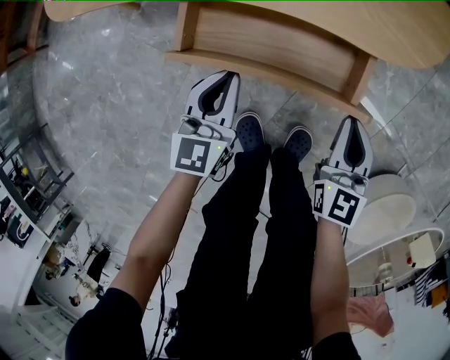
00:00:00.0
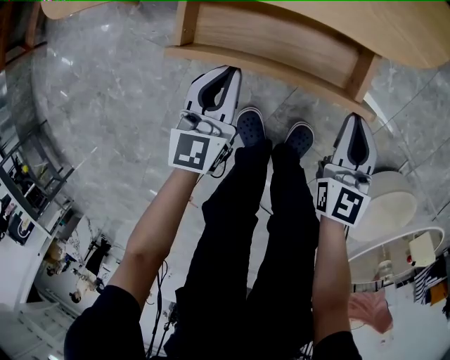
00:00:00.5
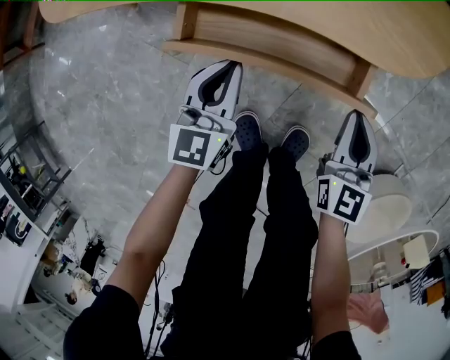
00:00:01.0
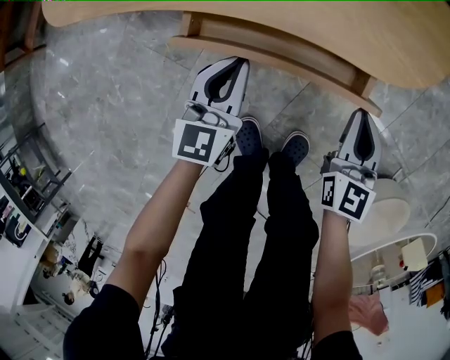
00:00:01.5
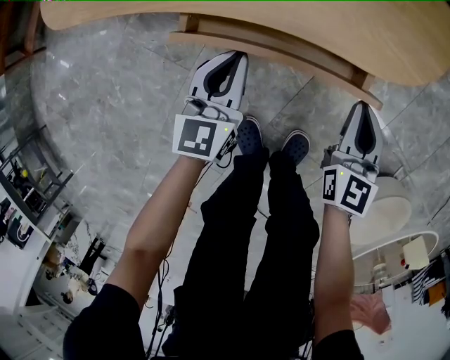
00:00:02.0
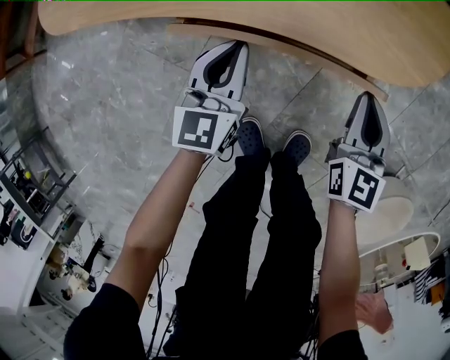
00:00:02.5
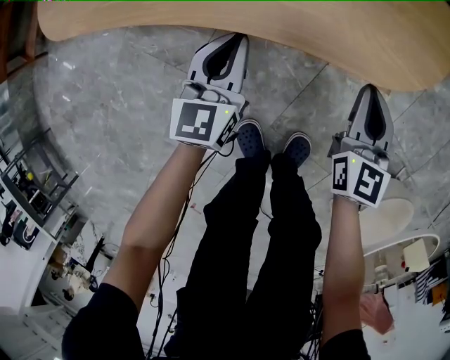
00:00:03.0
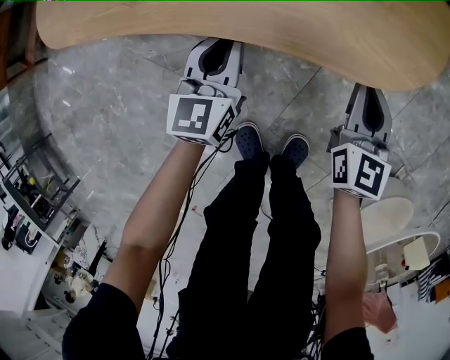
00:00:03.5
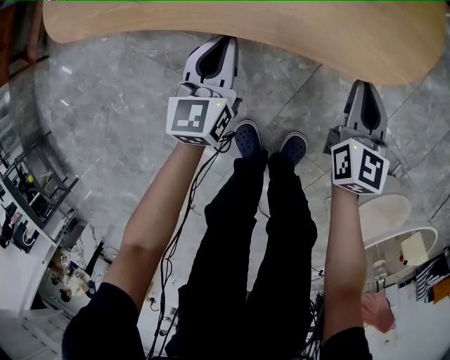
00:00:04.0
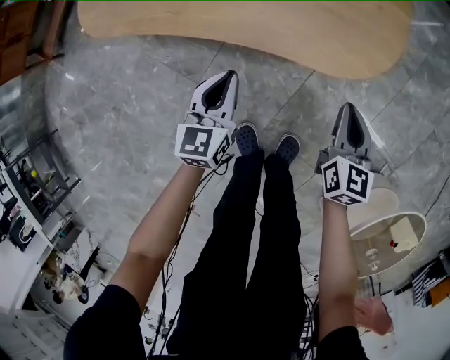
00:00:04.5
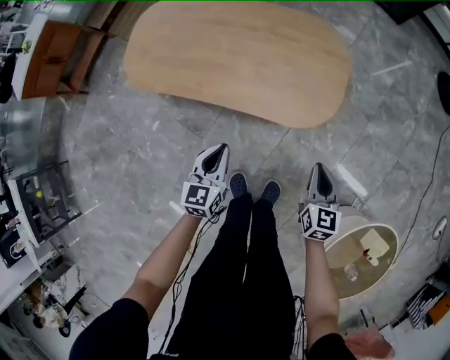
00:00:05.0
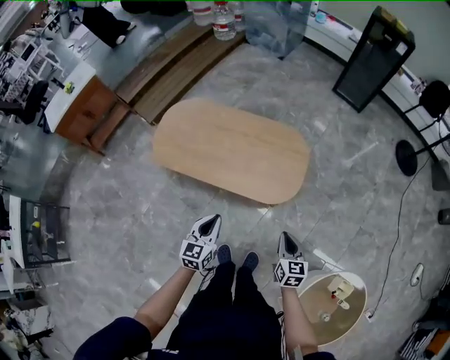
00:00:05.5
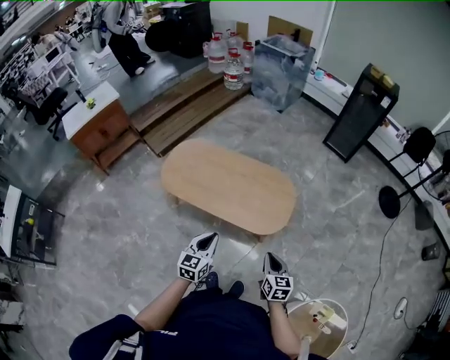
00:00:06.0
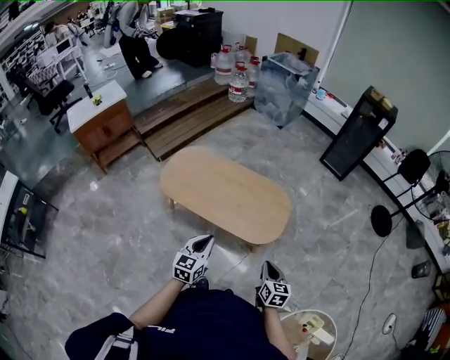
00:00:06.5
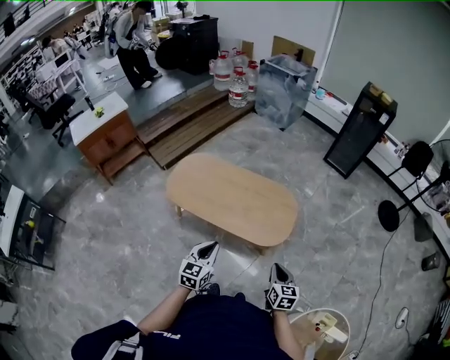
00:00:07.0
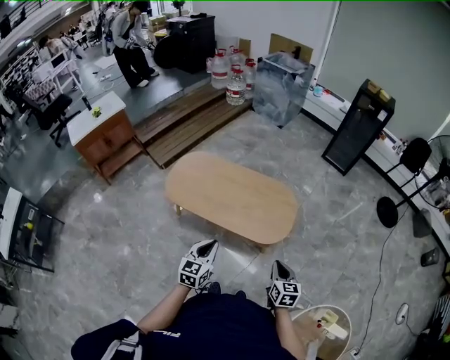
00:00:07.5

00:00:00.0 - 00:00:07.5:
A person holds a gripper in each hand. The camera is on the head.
00:00:00.0 - 00:00:02.0: The grippers both shift forward by approximately 5 cm.
00:00:02.0 - 00:00:04.0: The grippers both shift forward by about 5 cm.
00:00:04.0 - 00:00:05.5: The grippers both shift upward by some 50 cm.
00:00:05.5 - 00:00:07.5: The right gripper goes some 10 cm upward, while the left gripper moves upward and backward, about 15 cm.

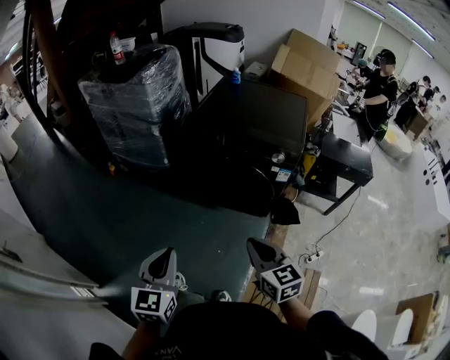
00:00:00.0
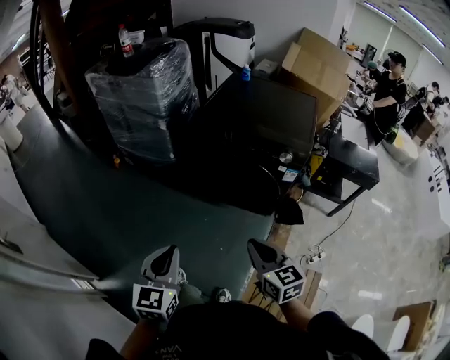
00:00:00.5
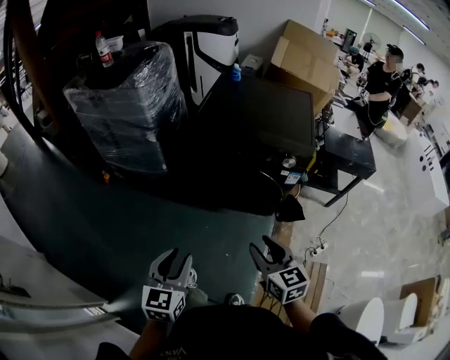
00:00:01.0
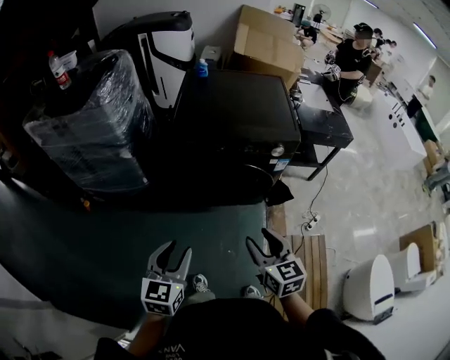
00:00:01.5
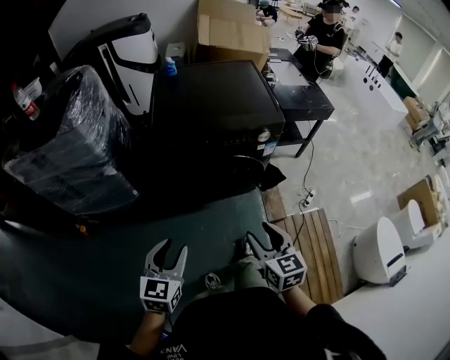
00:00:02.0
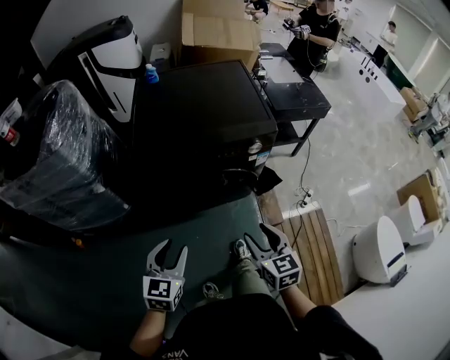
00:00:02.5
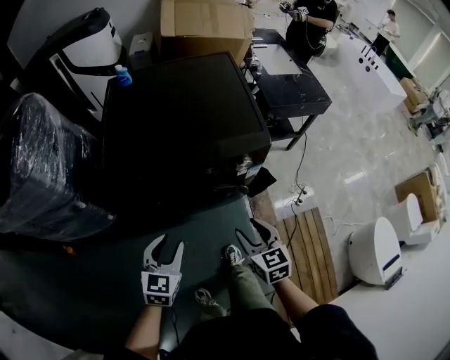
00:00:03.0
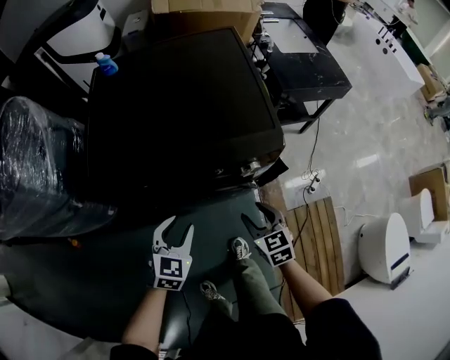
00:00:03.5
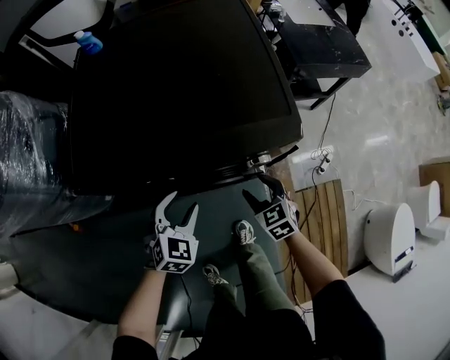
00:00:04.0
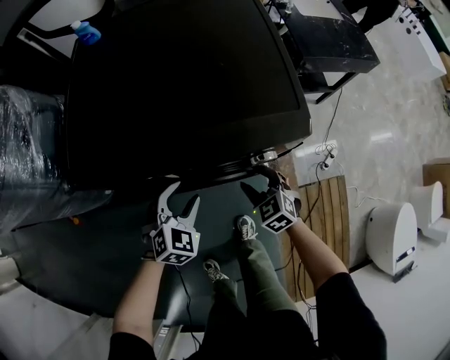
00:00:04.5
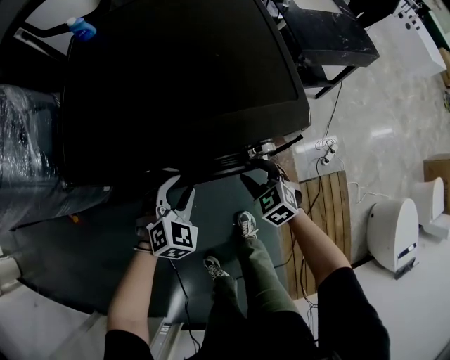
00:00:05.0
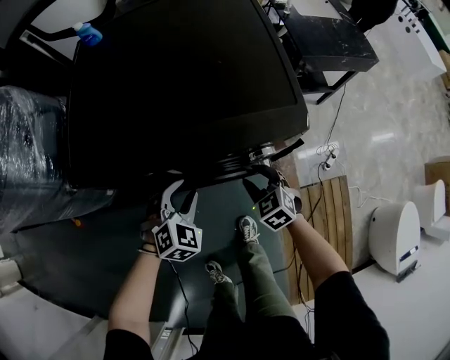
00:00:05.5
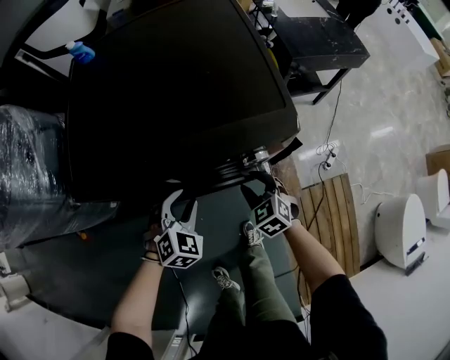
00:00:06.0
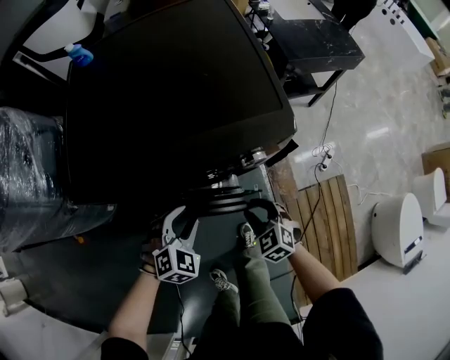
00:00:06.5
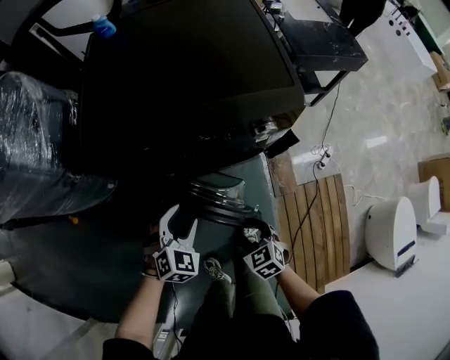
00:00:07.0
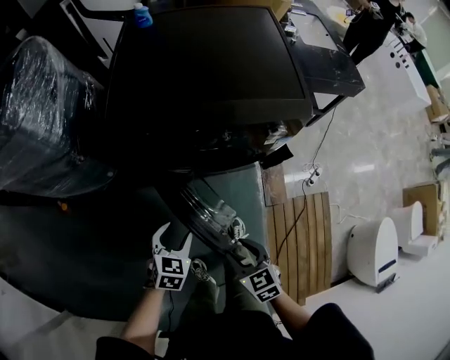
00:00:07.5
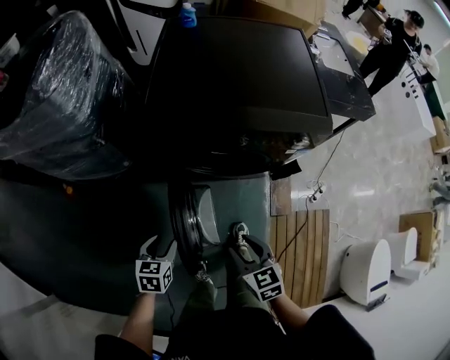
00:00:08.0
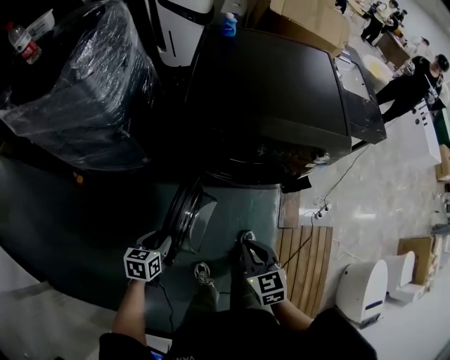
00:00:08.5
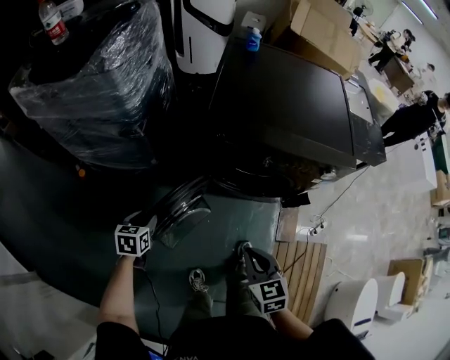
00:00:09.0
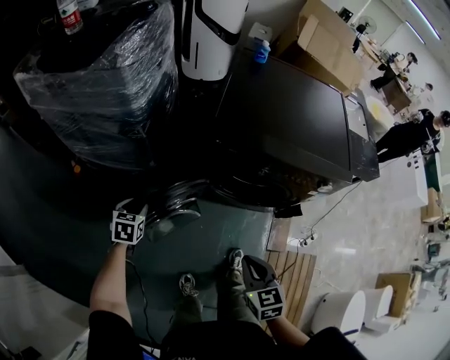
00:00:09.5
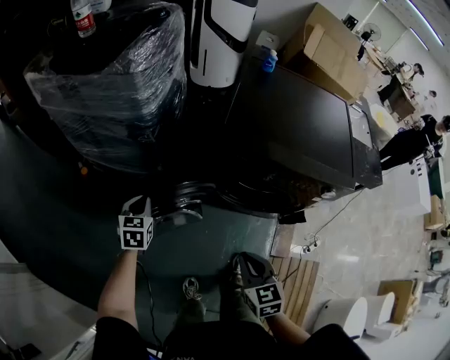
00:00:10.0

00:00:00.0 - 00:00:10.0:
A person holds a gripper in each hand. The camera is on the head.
00:00:00.0 - 00:00:02.0: The right gripper ends up approximately 15 cm from where it was, rotates approximately 40 degrees, and opens; the left gripper shifts by some 25 cm, rotates roughly 40 degrees, and opens up.
00:00:02.0 - 00:00:04.0: The left gripper shifts some 50 cm forward, downward and to the right, and rotates roughly 40 degrees. The right gripper heads forward and downward, covering roughly 40 cm, and changes its angle by some 30 degrees.
00:00:04.0 - 00:00:06.0: The grippers move only a little.
00:00:06.0 - 00:00:08.0: The left gripper heads to the left and backward, covering roughly 35 cm, and rolls counterclockwise, seen from behind, by approximately 60 degrees. Meanwhile the right gripper moves backward, to the left and upward, about 35 cm.
00:00:08.0 - 00:00:10.0: The right gripper moves to the left and upward, some 15 cm, and closes its fingers; the left gripper goes about 25 cm to the left and forward, turns by approximately 20 degrees, and closes its fingers.

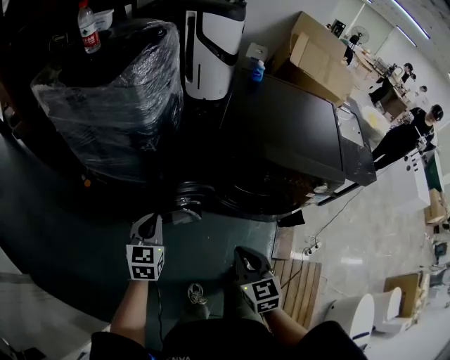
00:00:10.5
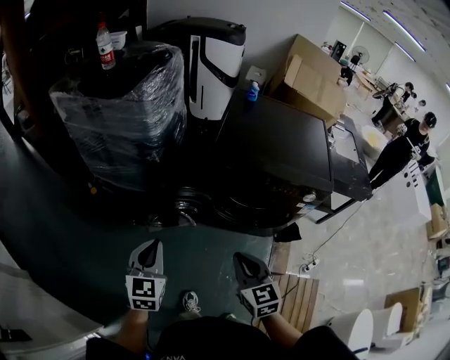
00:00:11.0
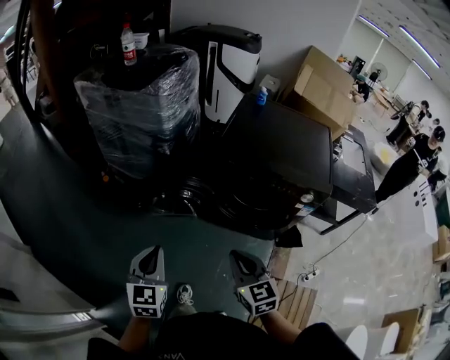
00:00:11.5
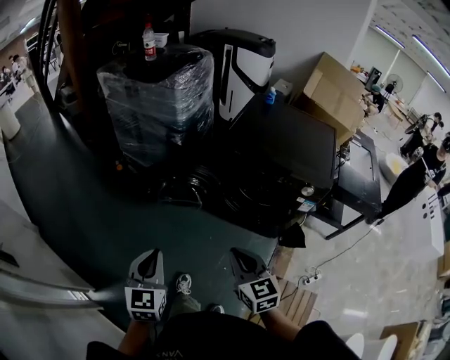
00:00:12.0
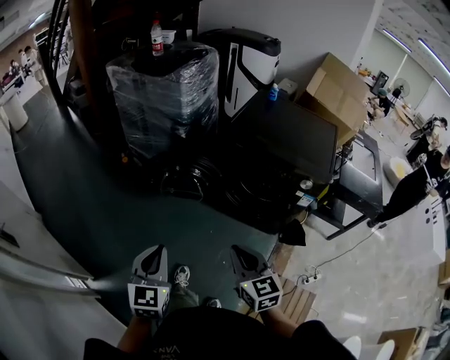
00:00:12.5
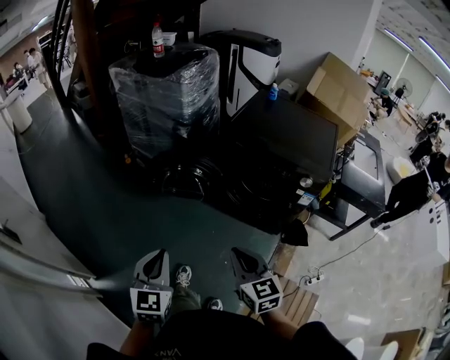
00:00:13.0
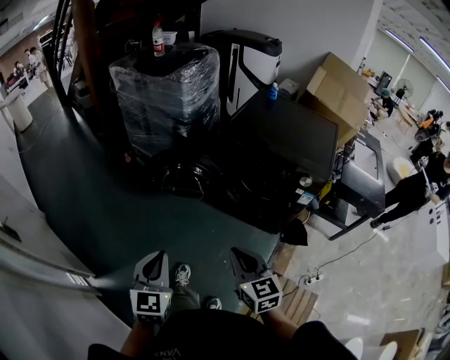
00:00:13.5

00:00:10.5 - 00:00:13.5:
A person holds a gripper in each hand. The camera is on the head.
00:00:10.5 - 00:00:12.0: The right gripper goes roughly 20 cm backward and upward. Meanwhile the left gripper travels backward by approximately 35 cm.
00:00:12.0 - 00:00:13.5: The grippers both shift backward by about 10 cm.

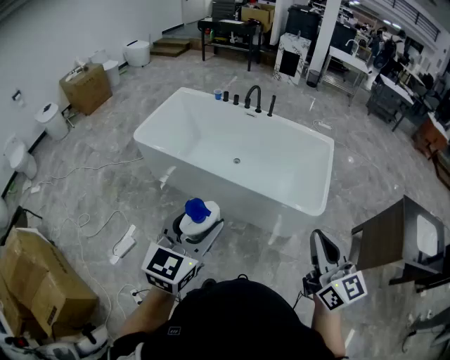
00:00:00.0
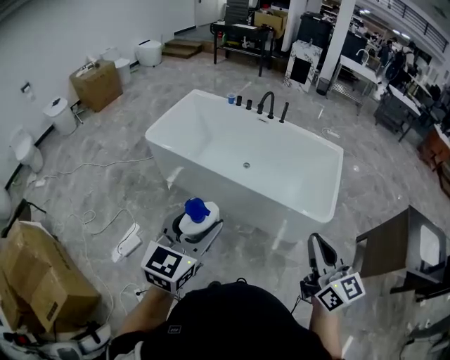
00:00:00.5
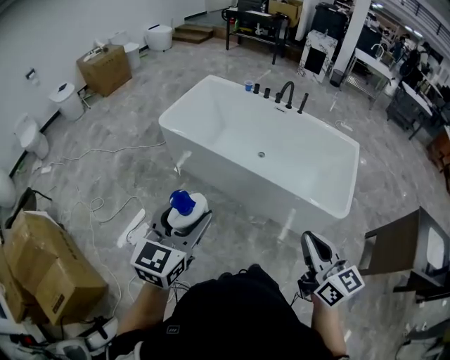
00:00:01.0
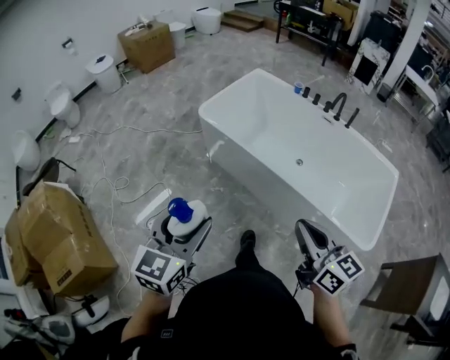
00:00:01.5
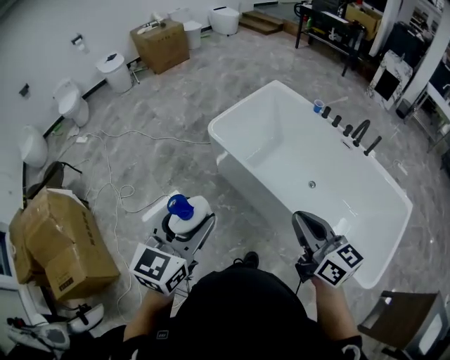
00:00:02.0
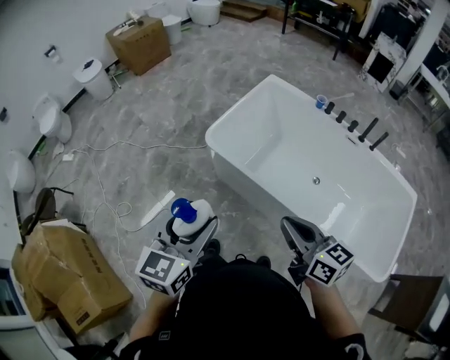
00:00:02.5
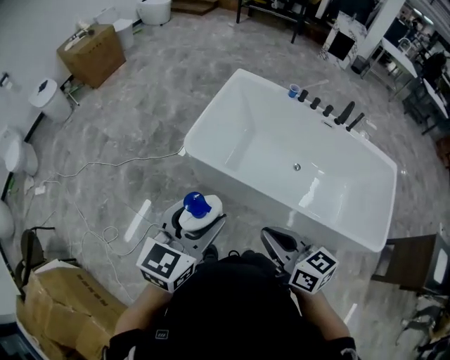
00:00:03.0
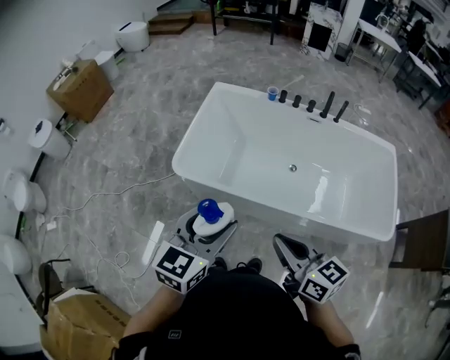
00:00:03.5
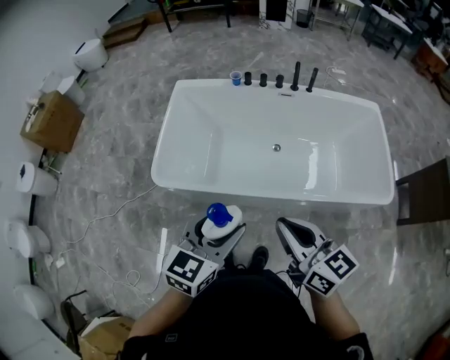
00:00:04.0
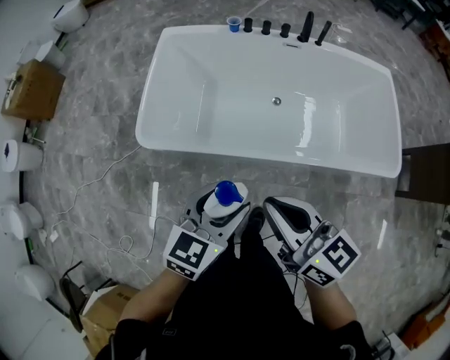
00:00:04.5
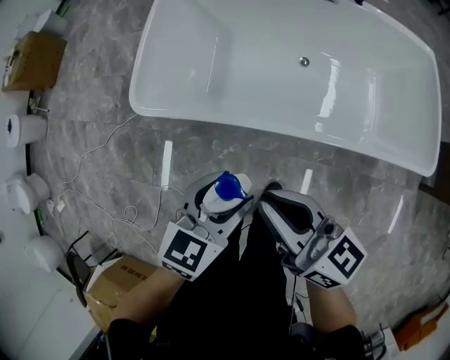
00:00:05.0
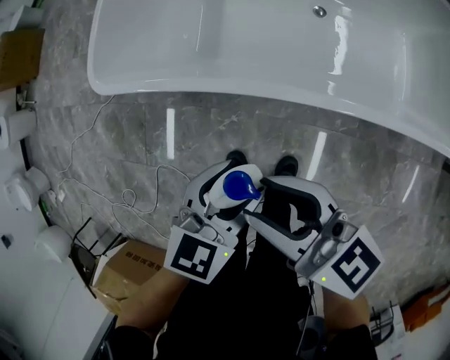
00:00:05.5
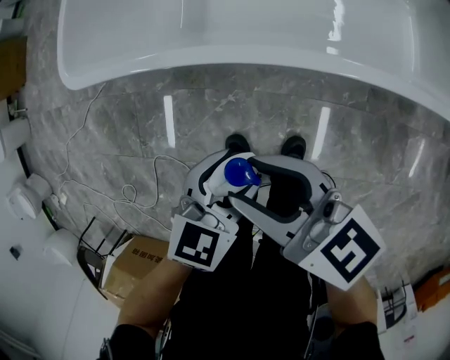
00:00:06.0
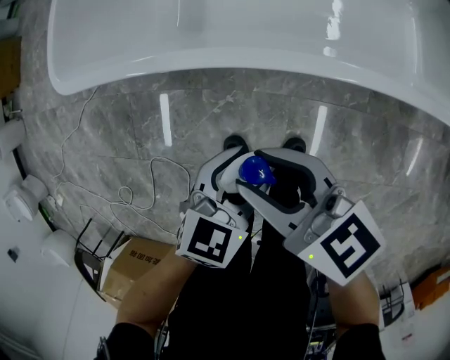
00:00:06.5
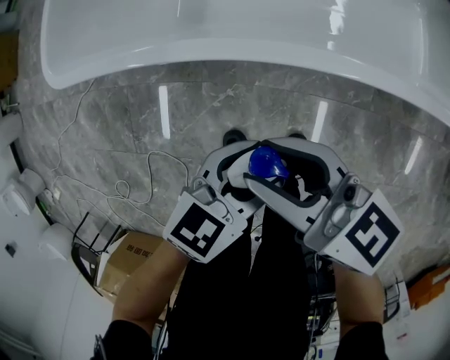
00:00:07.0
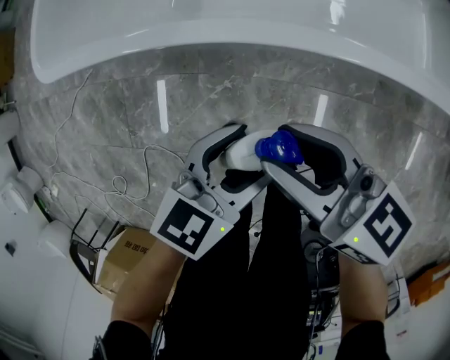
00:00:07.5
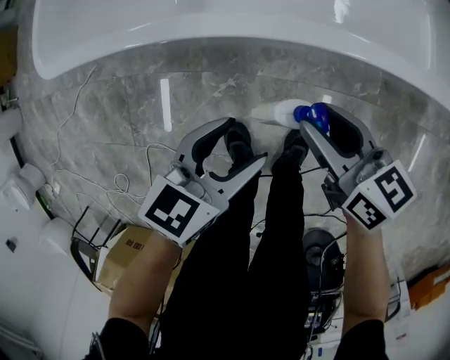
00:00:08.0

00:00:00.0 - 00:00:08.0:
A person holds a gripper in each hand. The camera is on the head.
00:00:00.0 - 00:00:02.0: Both grippers are carried some 50 cm. The left gripper rotates some 30 degrees. Meanwhile the right gripper changes its angle by about 40 degrees.
00:00:02.0 - 00:00:04.0: The left gripper ends up roughly 25 cm from where it was, and swivels approximately 50 degrees. The right gripper changes its angle by roughly 30 degrees.
00:00:04.0 - 00:00:06.0: Both grippers move downward, roughly 50 cm. The left gripper changes its angle by some 30 degrees. The right gripper rotates some 20 degrees, and opens.
00:00:06.0 - 00:00:08.0: The right gripper is displaced downward by approximately 15 cm. Meanwhile the left gripper is displaced downward by approximately 5 cm.
